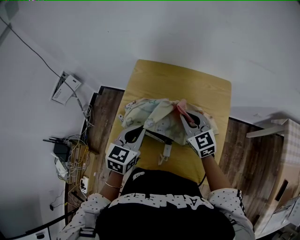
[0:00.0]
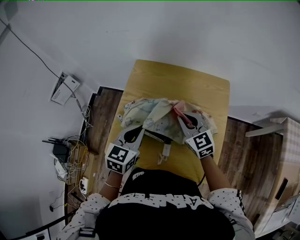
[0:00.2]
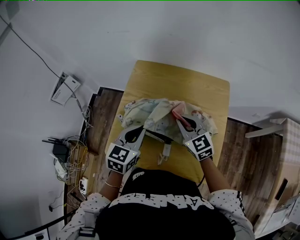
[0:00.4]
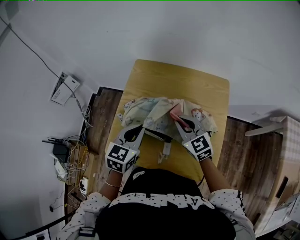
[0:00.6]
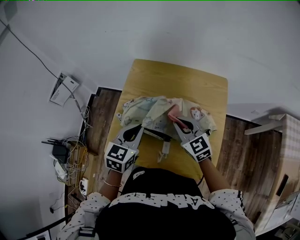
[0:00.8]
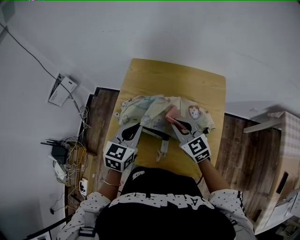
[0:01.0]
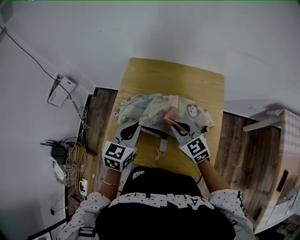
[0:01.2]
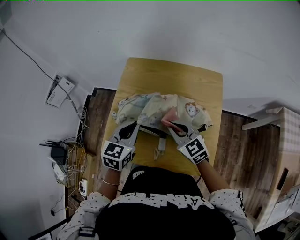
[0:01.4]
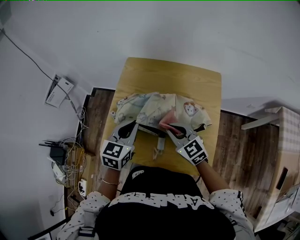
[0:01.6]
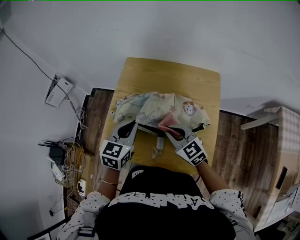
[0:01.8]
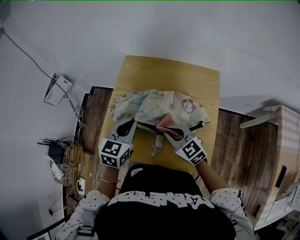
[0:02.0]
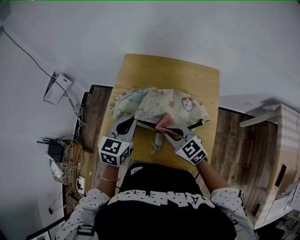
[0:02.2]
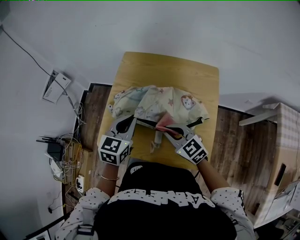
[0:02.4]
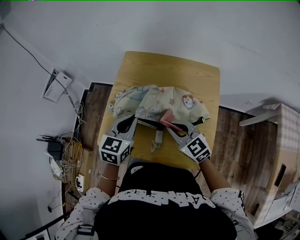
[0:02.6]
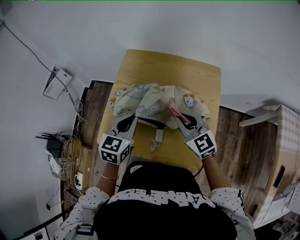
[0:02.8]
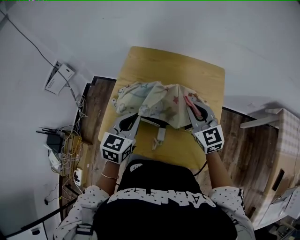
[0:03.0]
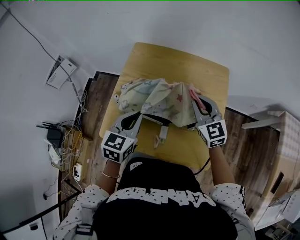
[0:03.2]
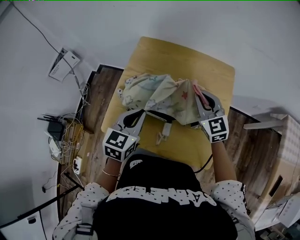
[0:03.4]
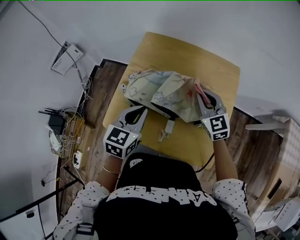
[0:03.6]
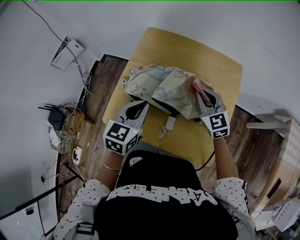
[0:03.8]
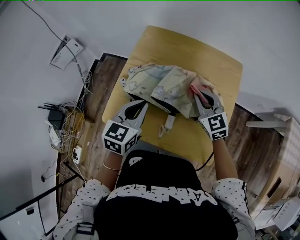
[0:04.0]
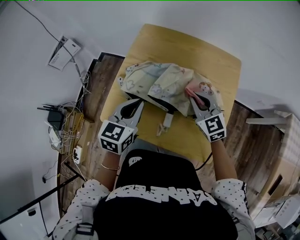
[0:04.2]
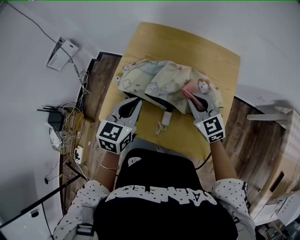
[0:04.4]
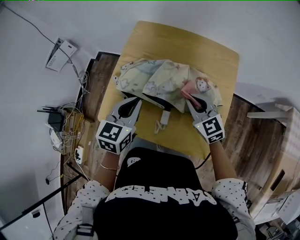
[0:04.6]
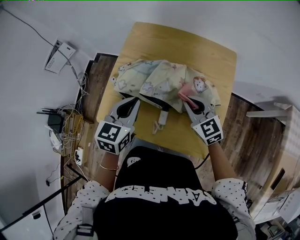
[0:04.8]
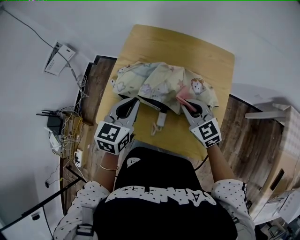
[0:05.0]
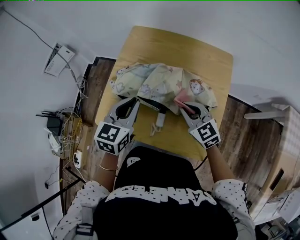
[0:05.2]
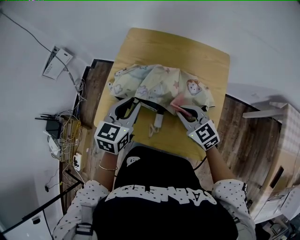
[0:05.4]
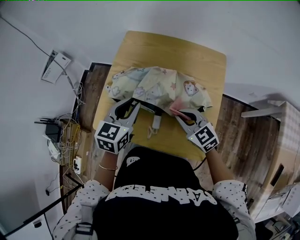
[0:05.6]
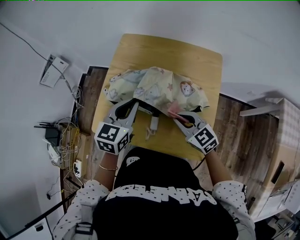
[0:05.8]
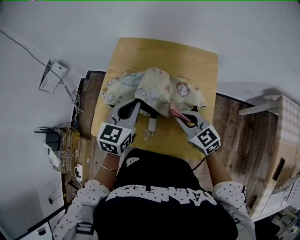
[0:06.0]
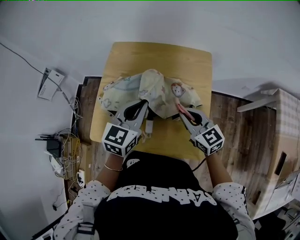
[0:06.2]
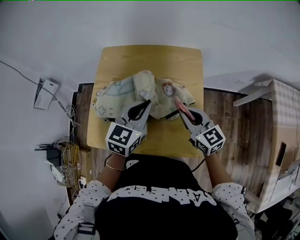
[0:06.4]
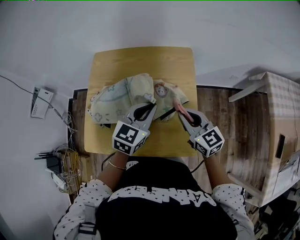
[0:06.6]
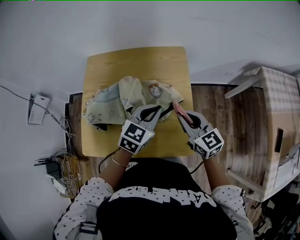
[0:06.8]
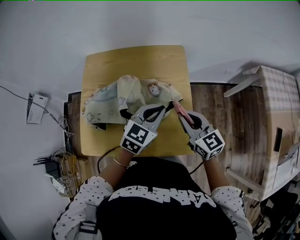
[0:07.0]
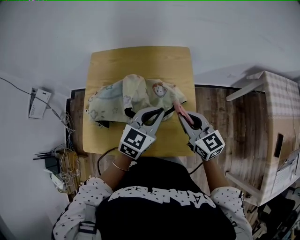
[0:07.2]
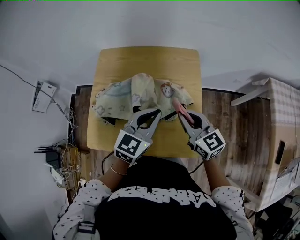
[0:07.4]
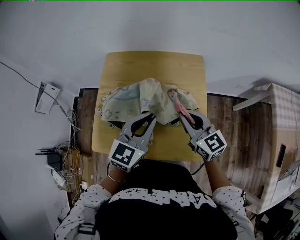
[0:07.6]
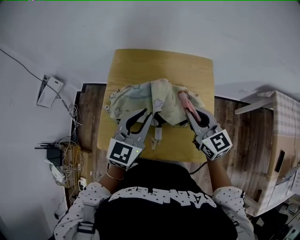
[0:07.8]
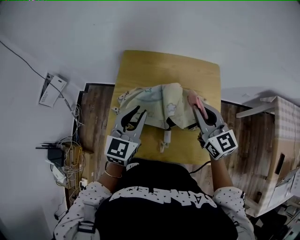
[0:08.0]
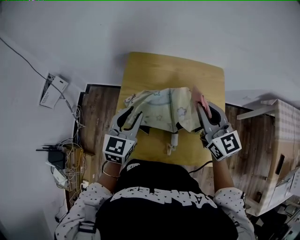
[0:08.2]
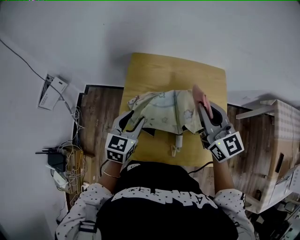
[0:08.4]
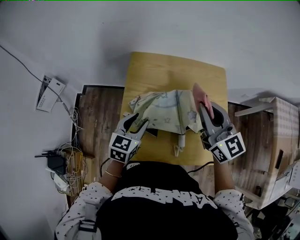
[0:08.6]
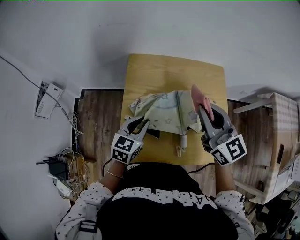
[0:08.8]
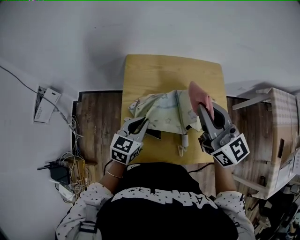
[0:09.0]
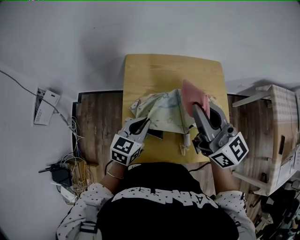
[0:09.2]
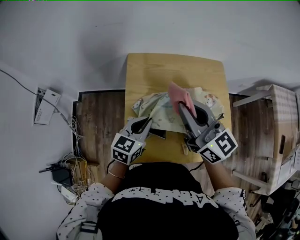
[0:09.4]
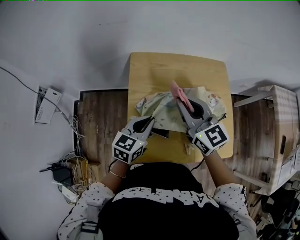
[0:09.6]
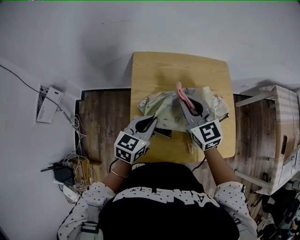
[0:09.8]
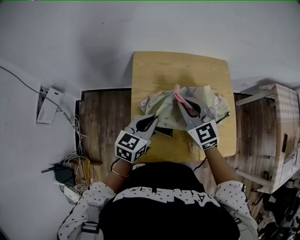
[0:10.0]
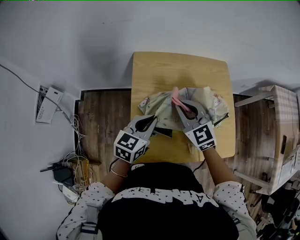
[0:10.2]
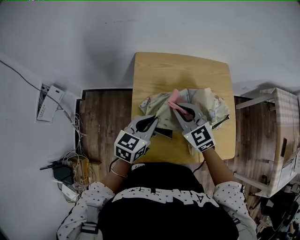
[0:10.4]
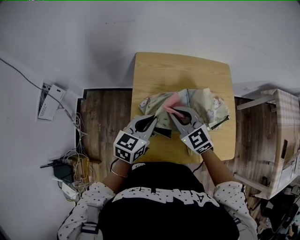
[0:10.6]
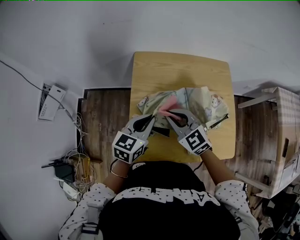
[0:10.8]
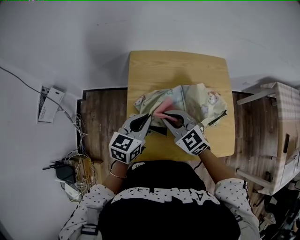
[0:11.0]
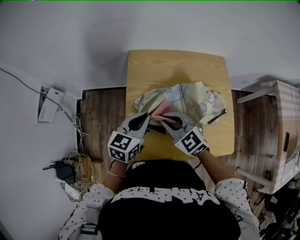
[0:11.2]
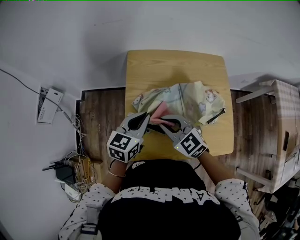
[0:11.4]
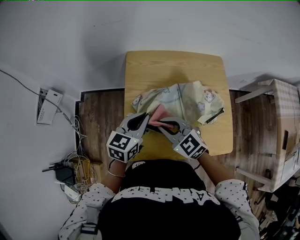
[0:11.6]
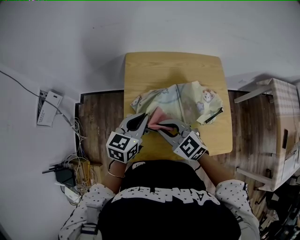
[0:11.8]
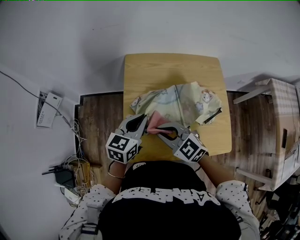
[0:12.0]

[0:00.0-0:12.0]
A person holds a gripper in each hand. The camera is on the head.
0:00.0 to 0:01.6: The right gripper heads backward, covering about 10 cm.
0:01.6 to 0:03.0: The right gripper is displaced to the right and upward by some 10 cm.
0:03.0 to 0:04.4: The right gripper shifts roughly 5 cm downward.
0:04.4 to 0:06.0: The right gripper travels backward by roughly 5 cm. Meanwhile the left gripper travels to the right by about 5 cm.
0:06.0 to 0:07.6: The right gripper is displaced upward by roughly 5 cm, and rotates roughly 20 degrees.
0:07.6 to 0:09.0: The right gripper heads to the left and upward, covering approximately 20 cm. The left gripper is displaced to the left and downward by some 25 cm, and opens, then closes again.
0:09.0 to 0:10.4: The right gripper shifts roughly 20 cm downward and to the left, and rotates roughly 30 degrees.
0:10.4 to 0:12.0: The right gripper is displaced backward by roughly 10 cm, and turns by about 20 degrees.

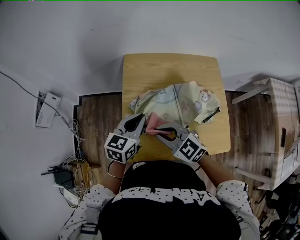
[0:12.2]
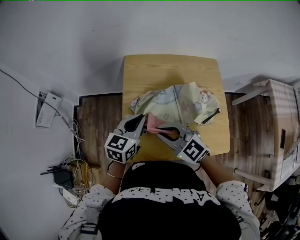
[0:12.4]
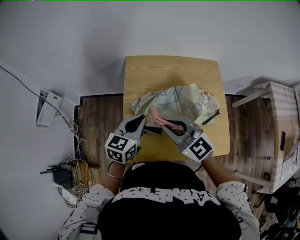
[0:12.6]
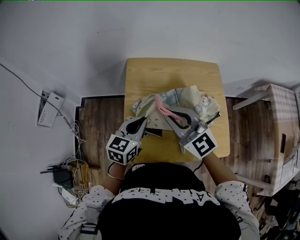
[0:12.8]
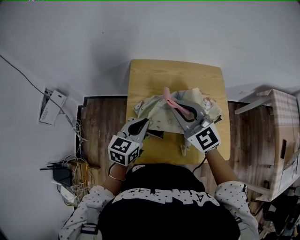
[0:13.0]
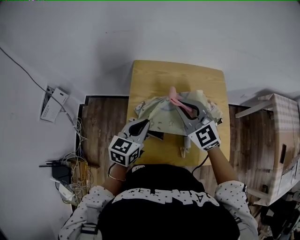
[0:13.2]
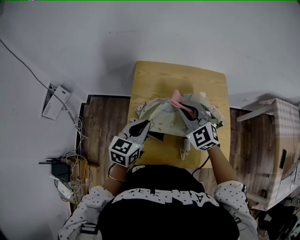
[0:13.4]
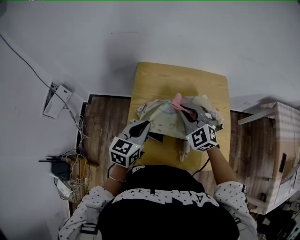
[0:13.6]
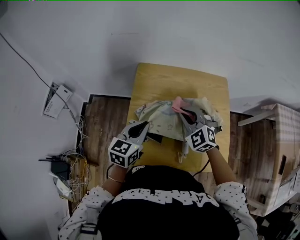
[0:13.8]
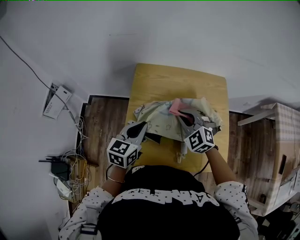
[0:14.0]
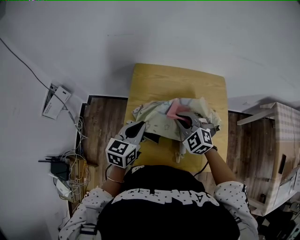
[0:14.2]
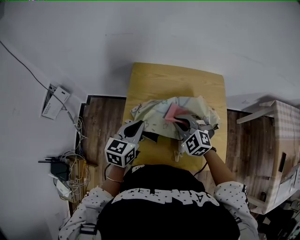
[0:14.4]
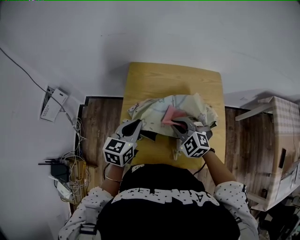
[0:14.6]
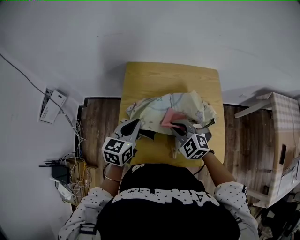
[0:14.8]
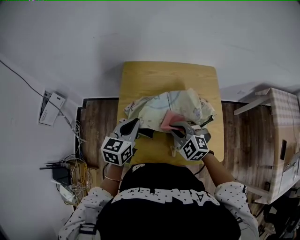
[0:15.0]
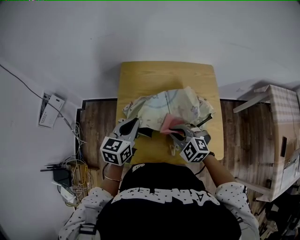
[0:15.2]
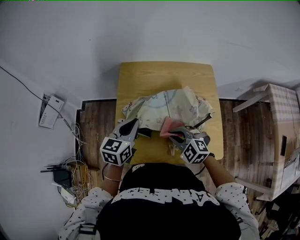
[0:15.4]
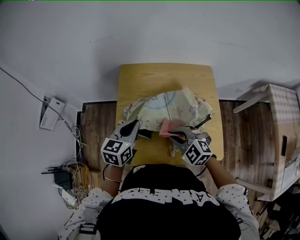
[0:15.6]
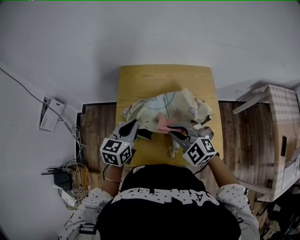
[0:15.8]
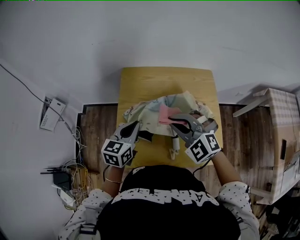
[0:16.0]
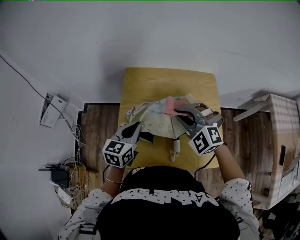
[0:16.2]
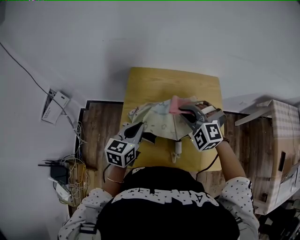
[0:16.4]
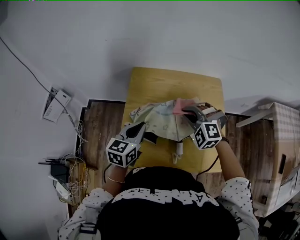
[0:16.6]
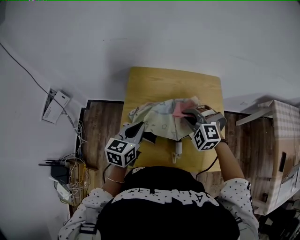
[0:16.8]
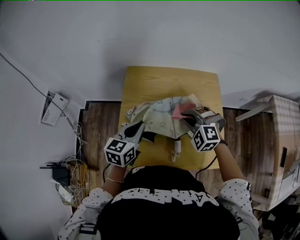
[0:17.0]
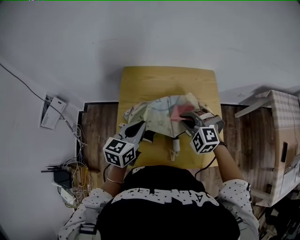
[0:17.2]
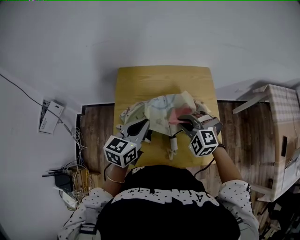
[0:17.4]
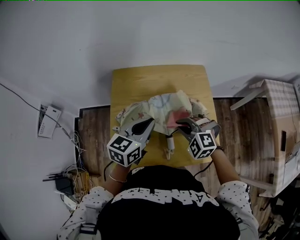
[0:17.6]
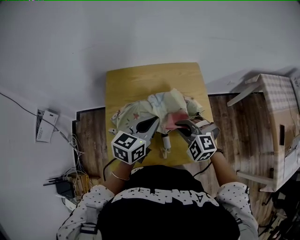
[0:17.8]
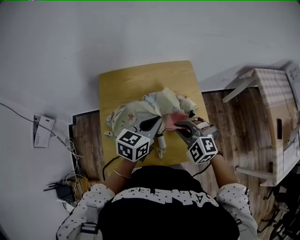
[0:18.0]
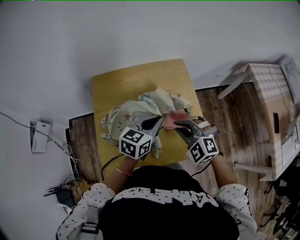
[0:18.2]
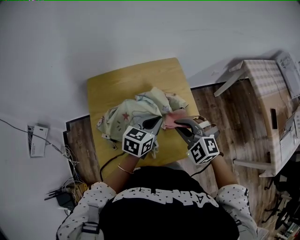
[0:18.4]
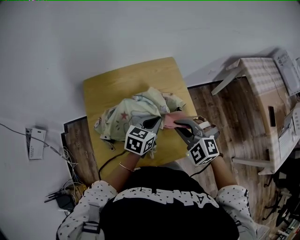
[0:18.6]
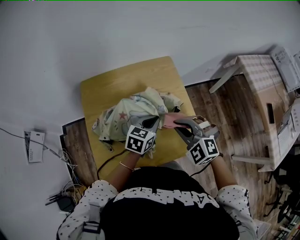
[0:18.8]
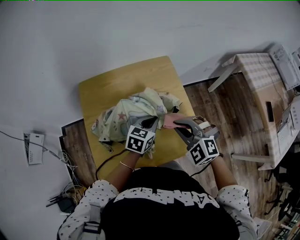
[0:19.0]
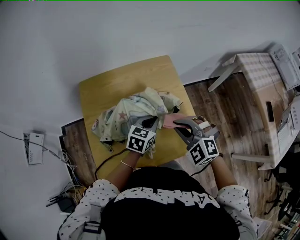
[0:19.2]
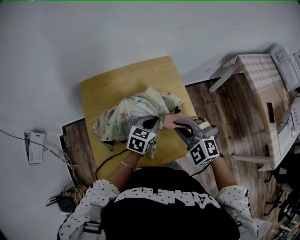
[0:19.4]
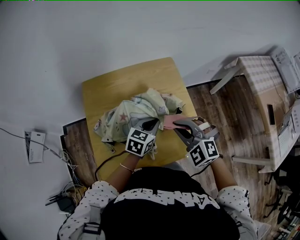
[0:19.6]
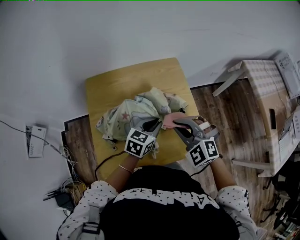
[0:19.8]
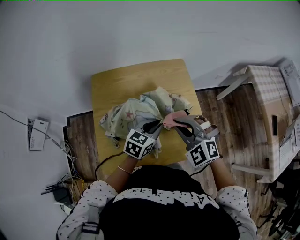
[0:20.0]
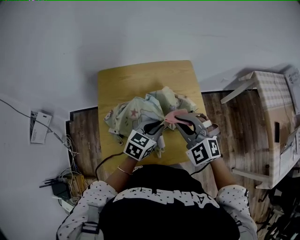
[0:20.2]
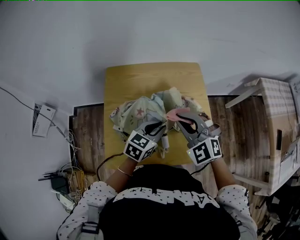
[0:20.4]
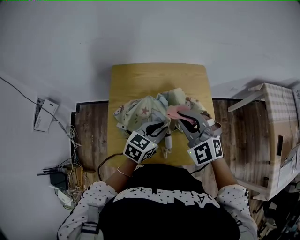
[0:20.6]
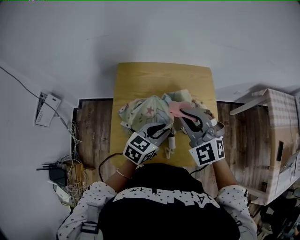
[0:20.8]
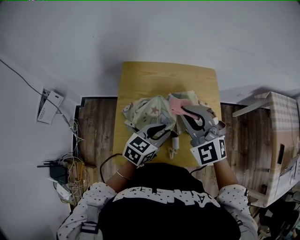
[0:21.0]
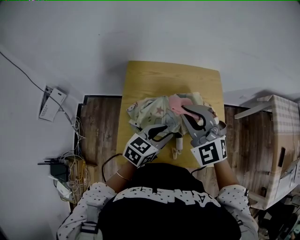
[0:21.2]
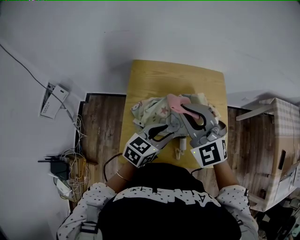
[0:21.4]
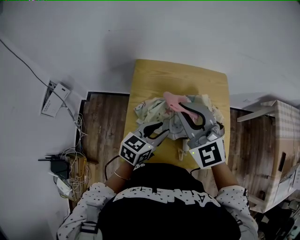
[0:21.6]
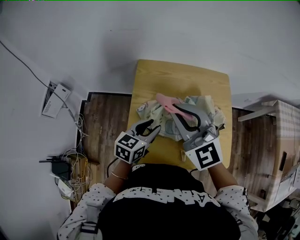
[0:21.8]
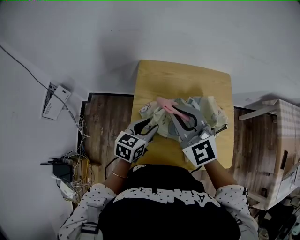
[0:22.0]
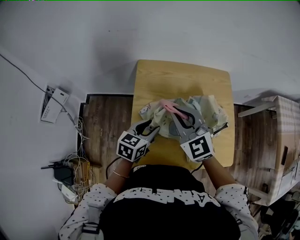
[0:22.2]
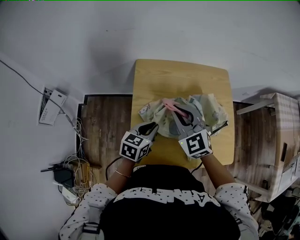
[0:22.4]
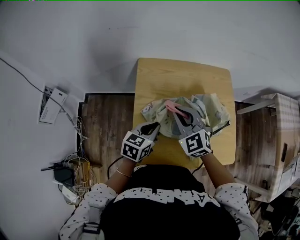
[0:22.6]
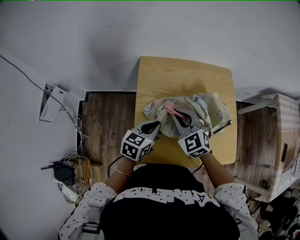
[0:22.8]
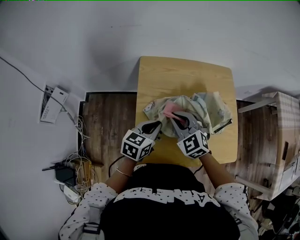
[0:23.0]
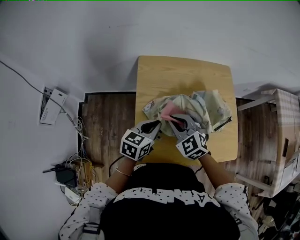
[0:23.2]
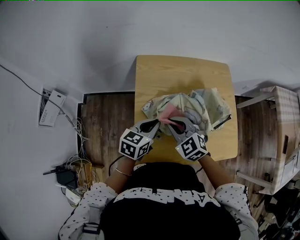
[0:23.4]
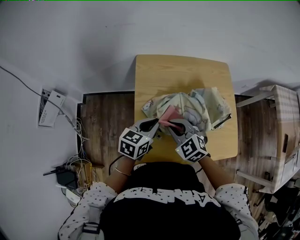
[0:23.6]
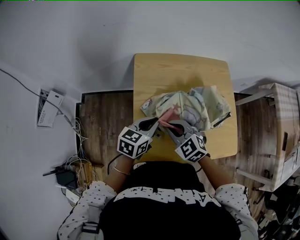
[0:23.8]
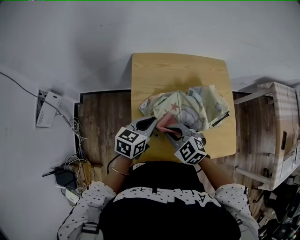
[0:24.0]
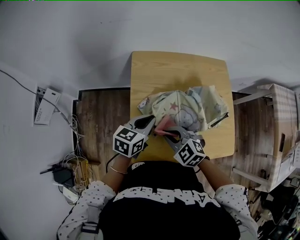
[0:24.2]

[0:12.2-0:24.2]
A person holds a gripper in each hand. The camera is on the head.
0:12.2 to 0:13.8: The right gripper is displaced forward and to the right by approximately 15 cm, and rotates roughly 30 degrees.
0:13.8 to 0:15.2: The right gripper is displaced backward and downward by roughly 15 cm.
0:15.2 to 0:16.6: The right gripper heads forward and upward, covering about 15 cm, and turns by some 30 degrees.
0:16.6 to 0:18.2: The left gripper heads to the right, covering approximately 20 cm, and swivels approximately 30 degrees. The right gripper travels to the right and backward by about 15 cm, and changes its angle by roughly 20 degrees.
0:18.2 to 0:19.8: The left gripper goes about 5 cm downward.
0:19.8 to 0:21.2: The right gripper heads to the left and upward, covering about 15 cm, and rotates about 20 degrees; the left gripper heads to the left, covering roughly 10 cm.
0:21.2 to 0:22.6: The right gripper goes roughly 15 cm downward and to the left; the left gripper moves to the left and downward, approximately 15 cm, and closes.
0:22.6 to 0:24.2: The right gripper heads backward and downward, covering some 15 cm, and changes its angle by approximately 30 degrees.
